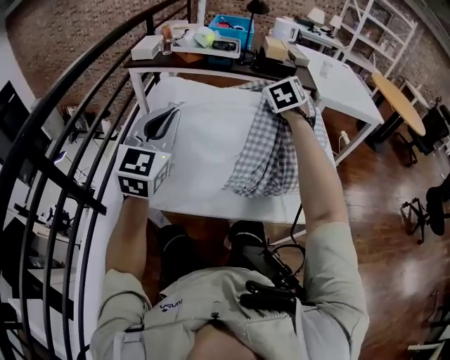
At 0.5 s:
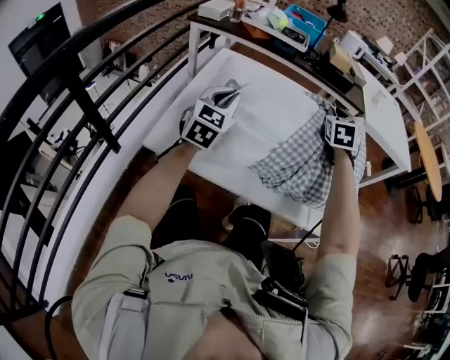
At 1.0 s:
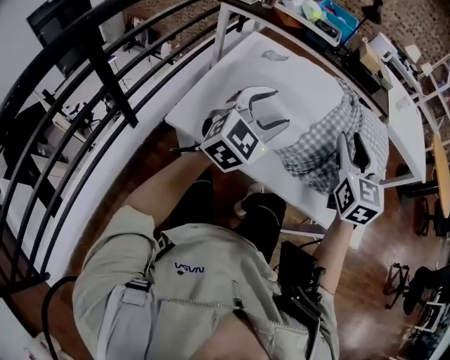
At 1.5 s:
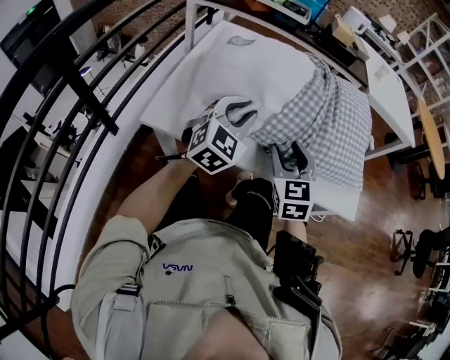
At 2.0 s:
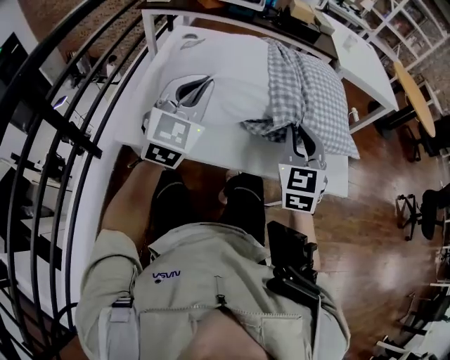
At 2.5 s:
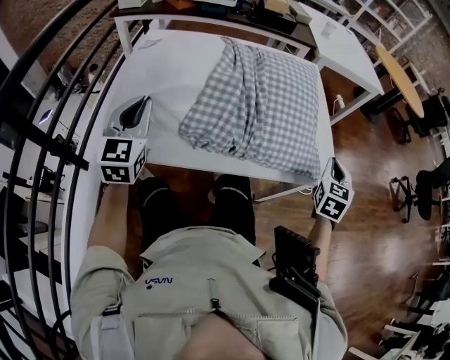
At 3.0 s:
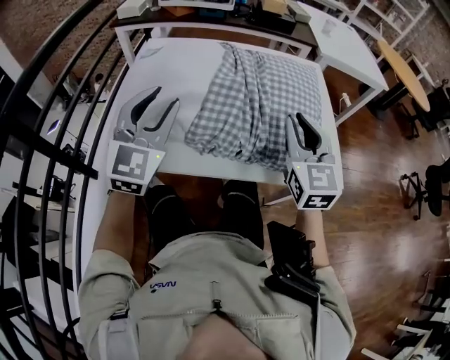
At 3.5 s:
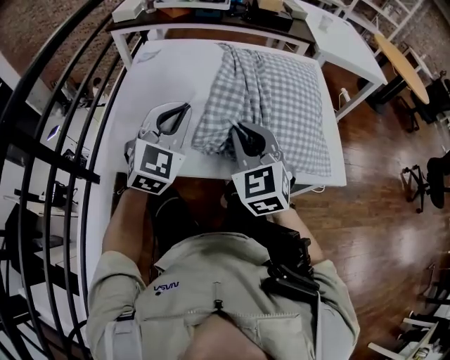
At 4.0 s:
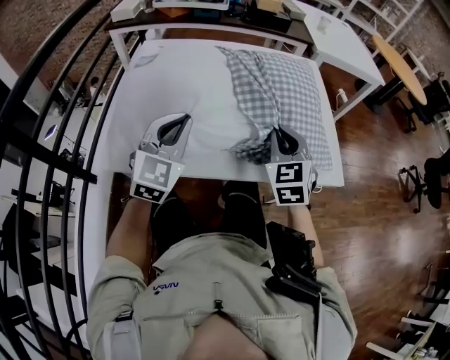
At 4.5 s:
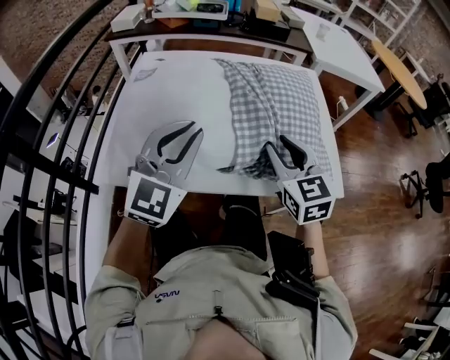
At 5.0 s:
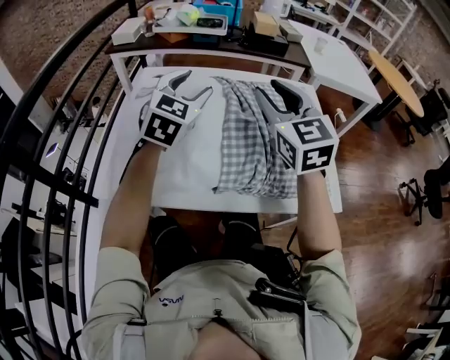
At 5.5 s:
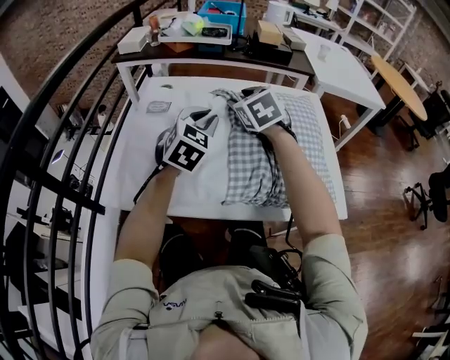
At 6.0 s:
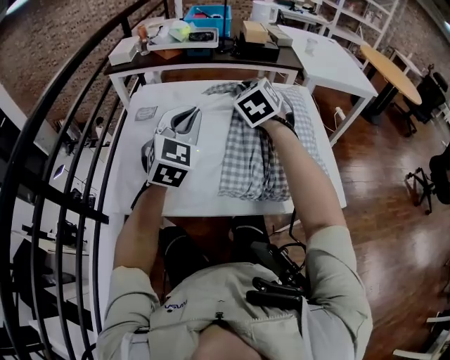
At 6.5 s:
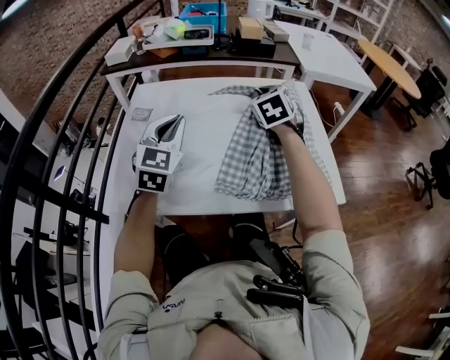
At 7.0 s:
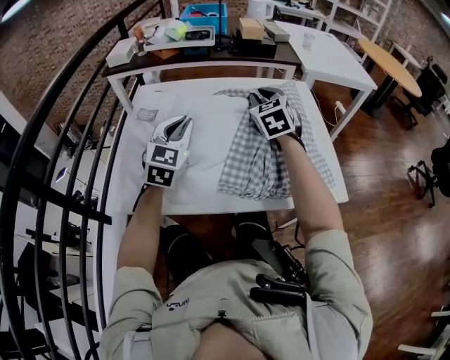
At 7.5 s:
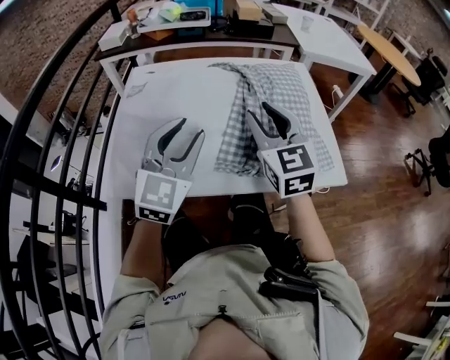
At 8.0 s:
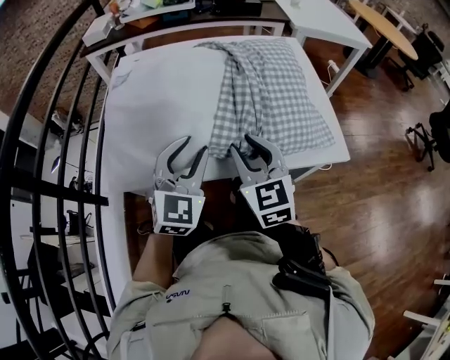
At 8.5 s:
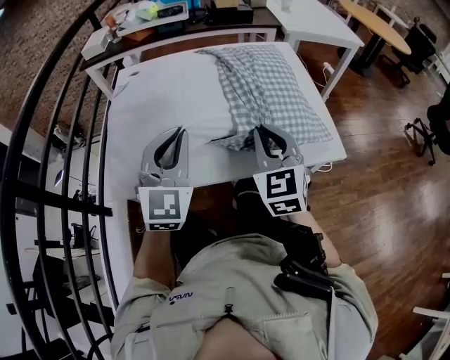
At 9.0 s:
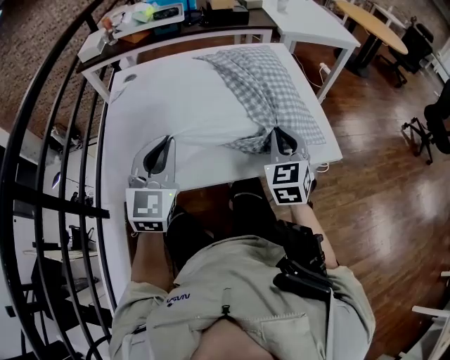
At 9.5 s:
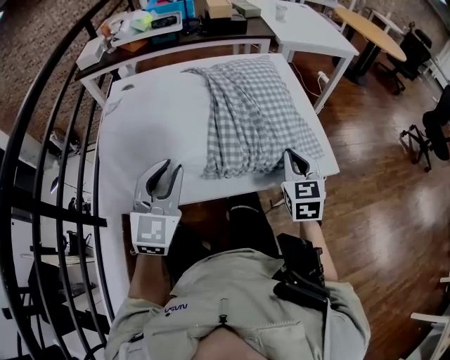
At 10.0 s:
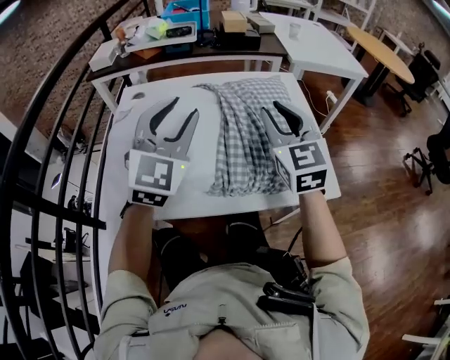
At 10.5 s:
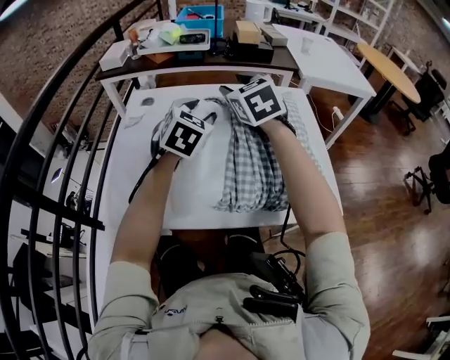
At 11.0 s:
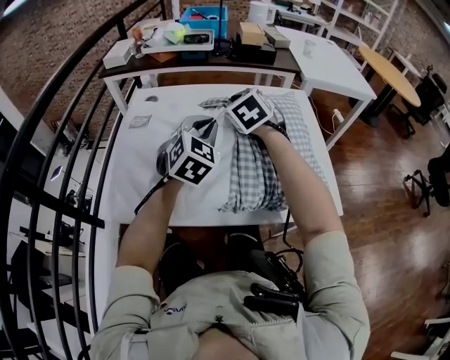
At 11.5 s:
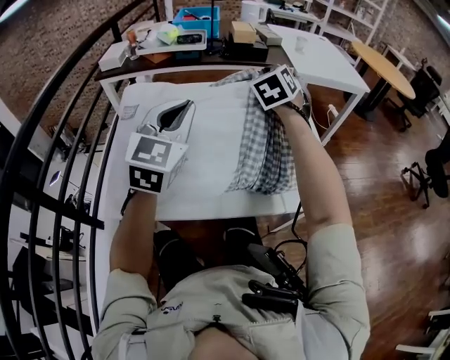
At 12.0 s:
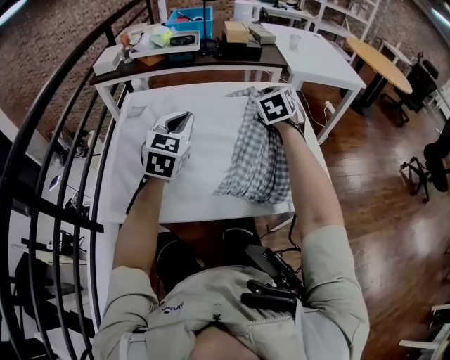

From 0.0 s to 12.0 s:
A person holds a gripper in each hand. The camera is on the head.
From 0.0 s to 2.0 s: The right gripper travels backward by some 25 cm, swivels approximately 20 degrees, and opens and closes again; the left gripper travels downward and to the right by roughly 10 cm, and opens and closes again.
From 2.0 s to 4.0 s: The left gripper shifts about 5 cm downward, reaches some 5 cm to the left, then returns, and opens, then closes again. Meanwhile the right gripper swings left and right, roughly 35 cm each way, with 2 reversals.
From 4.0 s to 6.0 s: The right gripper shifts approximately 25 cm forward, upward and to the left, and opens, then closes once more. Meanwhile the left gripper travels forward and upward by some 10 cm, and opens, then closes again.
From 6.0 s to 8.0 s: The left gripper shifts some 15 cm backward and downward, and opens its fingers; the right gripper moves backward and downward, some 25 cm, rotates about 30 degrees, and opens its fingers.
From 8.0 s to 10.0 s: The left gripper swings up and down, about 15 cm each way, with 2 reversals, and closes and opens again, while the right gripper travels upward, forward and to the right by some 20 cm, and closes, then reopens.
From 10.0 s to 12.0 s: The left gripper swings forward and backward, about 10 cm each way, with 2 reversals, and closes; the right gripper goes roughly 15 cm forward, swivels approximately 30 degrees, and closes.

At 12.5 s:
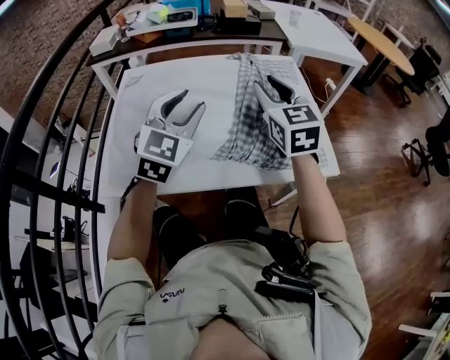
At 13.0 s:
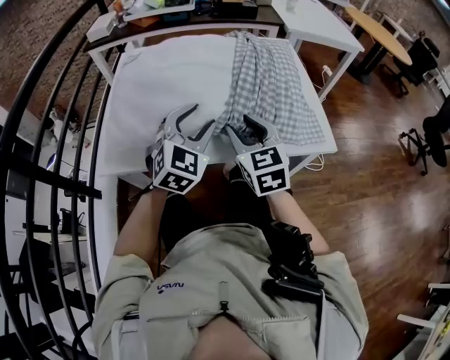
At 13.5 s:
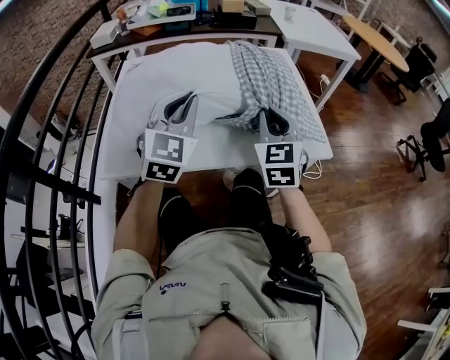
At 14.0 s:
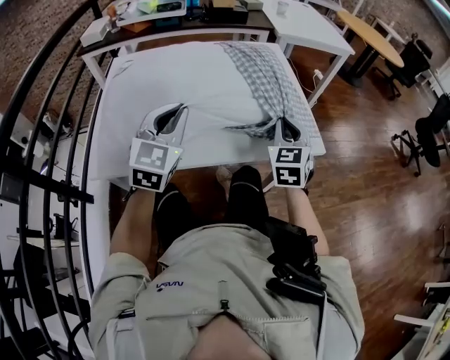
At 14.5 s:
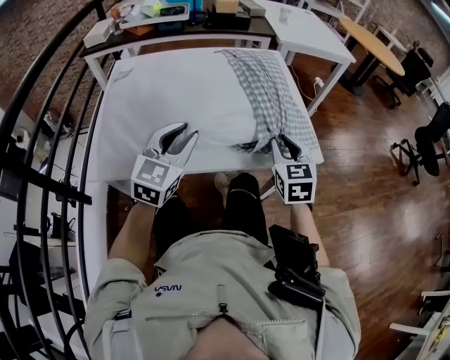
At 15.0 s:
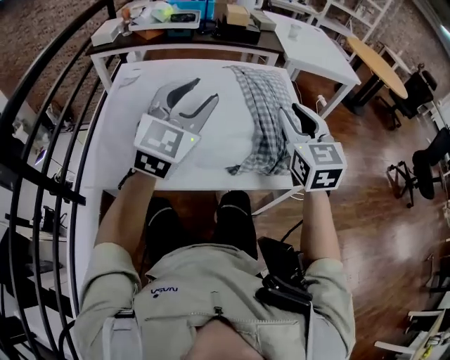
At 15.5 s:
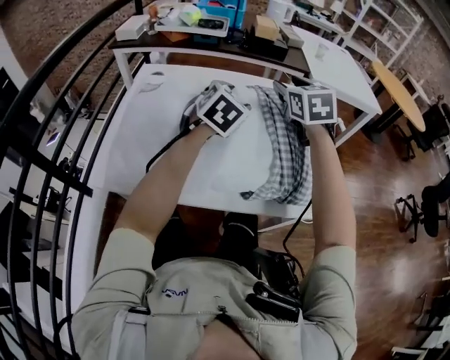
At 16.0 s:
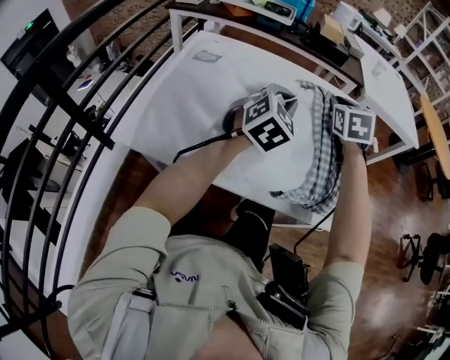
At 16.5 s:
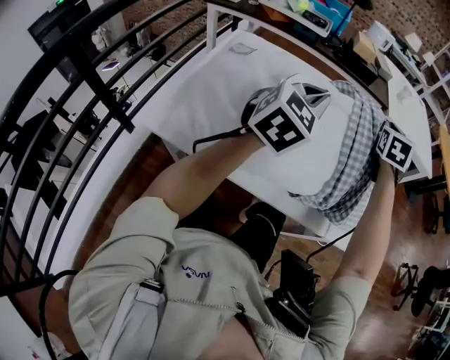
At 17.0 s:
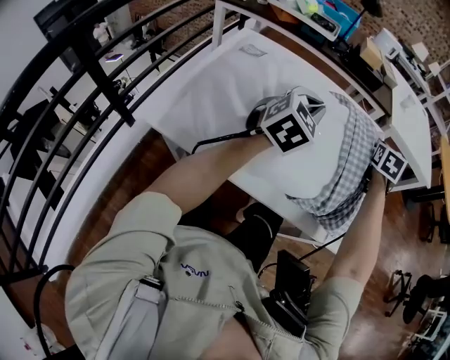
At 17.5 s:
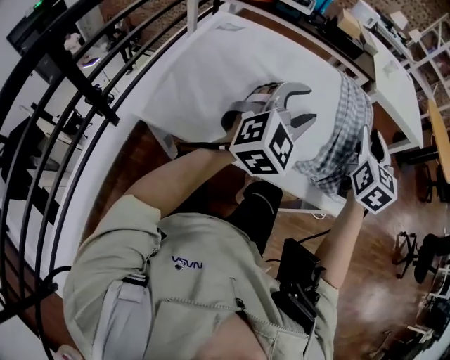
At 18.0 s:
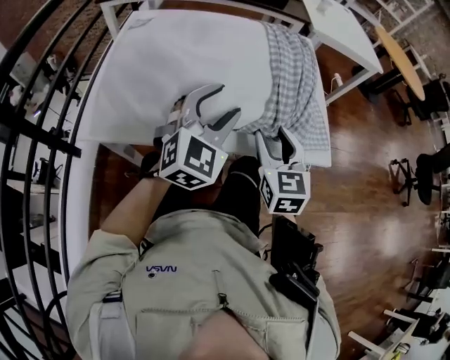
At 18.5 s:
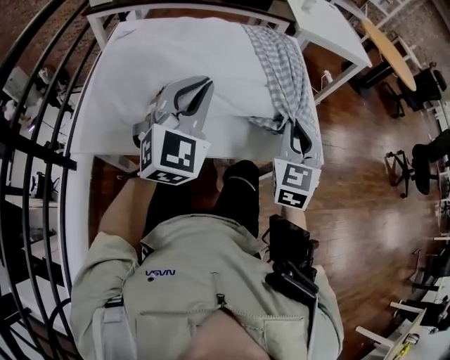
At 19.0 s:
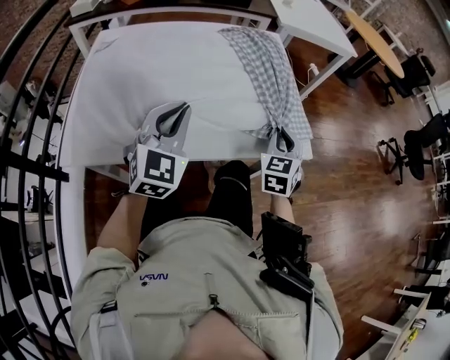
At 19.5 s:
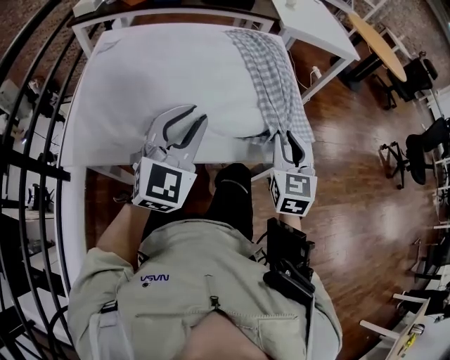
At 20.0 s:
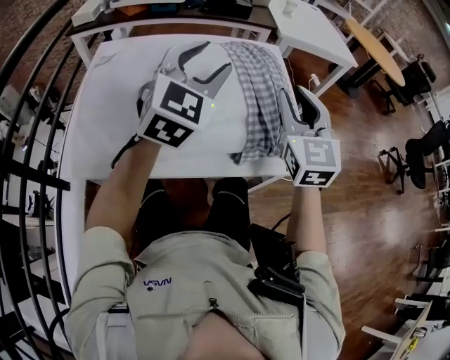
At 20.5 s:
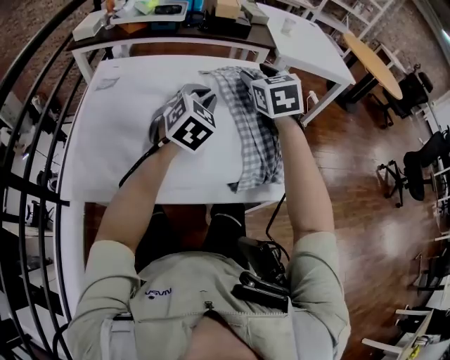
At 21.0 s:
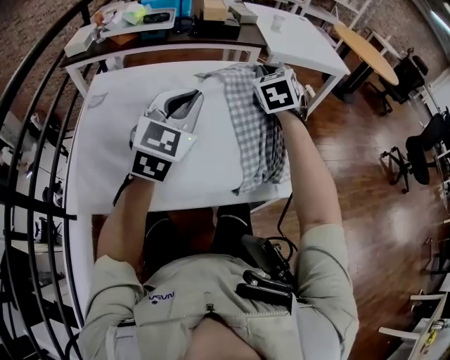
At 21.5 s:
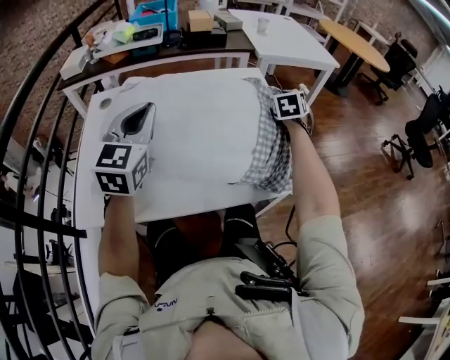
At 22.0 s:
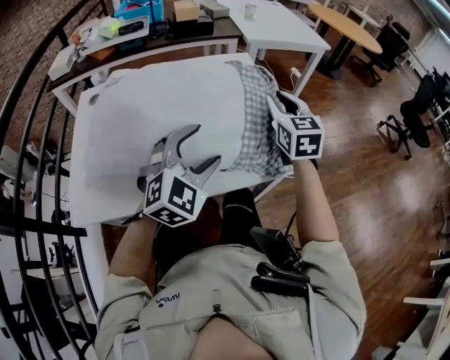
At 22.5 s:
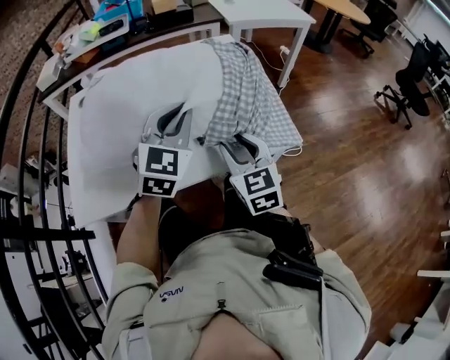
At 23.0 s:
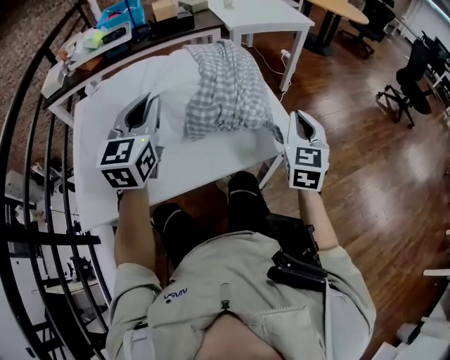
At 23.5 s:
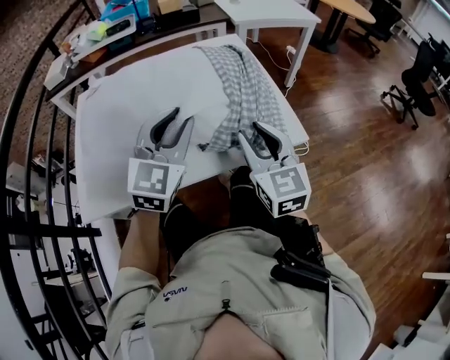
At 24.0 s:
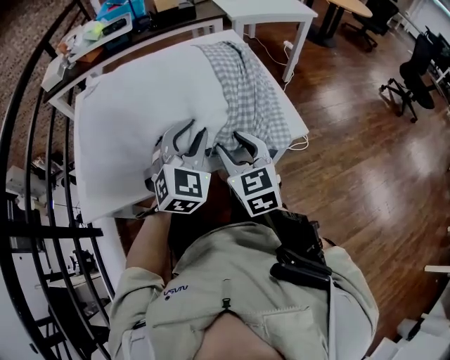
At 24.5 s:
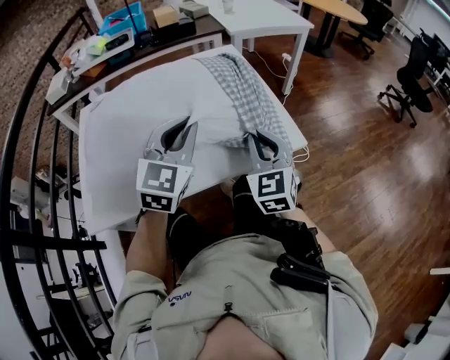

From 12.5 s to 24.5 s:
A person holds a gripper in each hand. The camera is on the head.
From 12.5 s to 14.5 s: The right gripper heads downward, to the right and backward, covering approximately 20 cm. Meanwhile the left gripper moves up and down over roughly 10 cm, changing direction 2 times.
From 14.5 s to 16.5 s: The right gripper travels forward and upward by approximately 30 cm, and opens, then closes once more; the left gripper goes approximately 20 cm forward and upward, and opens, then closes again.
From 16.5 s to 18.5 s: The left gripper moves backward and downward, some 10 cm, and opens and closes again. Meanwhile the right gripper is displaced backward by about 30 cm, and opens, then closes once more.
From 18.5 s to 20.5 s: The left gripper travels forward by some 15 cm, swivels roughly 20 degrees, and opens and closes again. The right gripper goes some 25 cm forward and to the left, rotates about 20 degrees, and opens up.
From 20.5 s to 22.5 s: The left gripper shifts some 10 cm backward, goes to the left and returns, approximately 10 cm each way, and opens, then closes again. Meanwhile the right gripper shifts some 25 cm backward and downward, and closes, then reopens.
From 22.5 s to 24.5 s: The right gripper moves left and right over about 20 cm, changing direction 2 times, and closes, while the left gripper goes up and down, approximately 10 cm each way, reversing 2 times.

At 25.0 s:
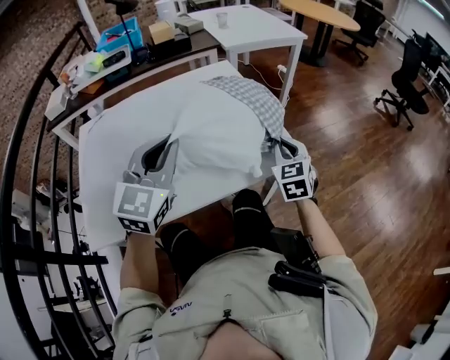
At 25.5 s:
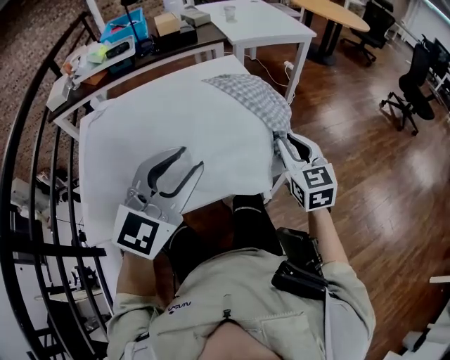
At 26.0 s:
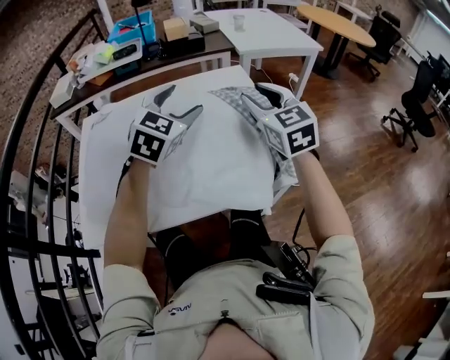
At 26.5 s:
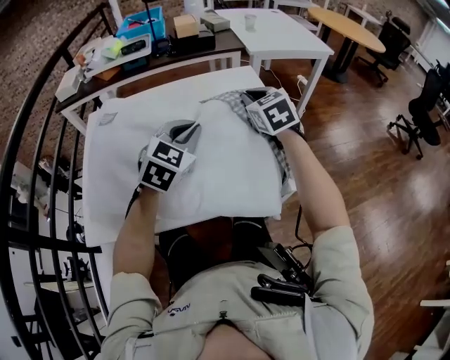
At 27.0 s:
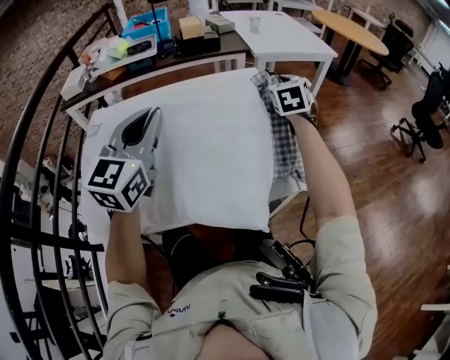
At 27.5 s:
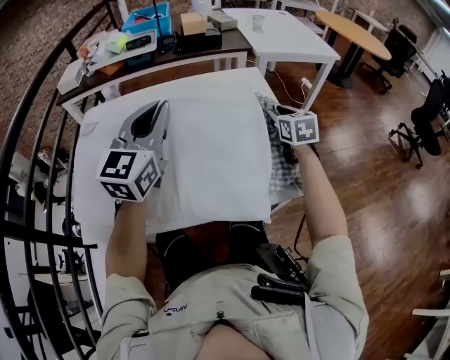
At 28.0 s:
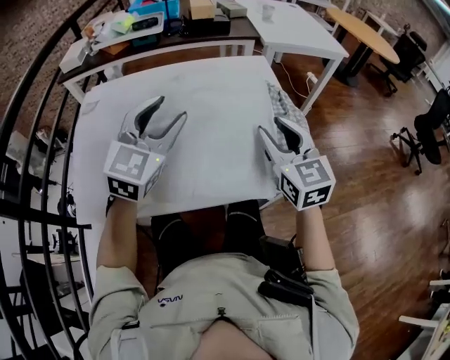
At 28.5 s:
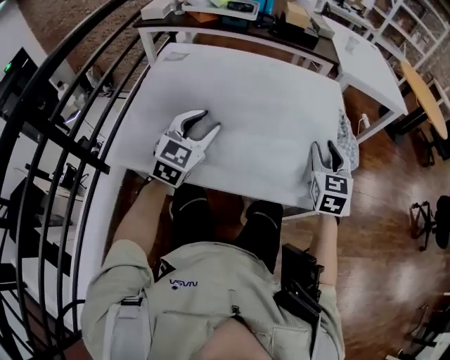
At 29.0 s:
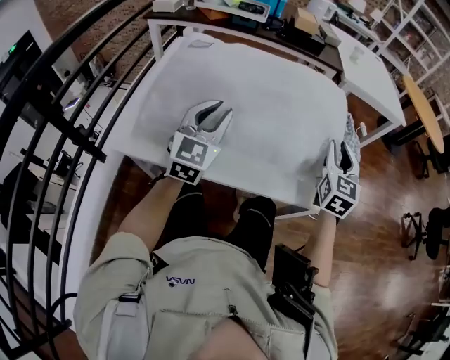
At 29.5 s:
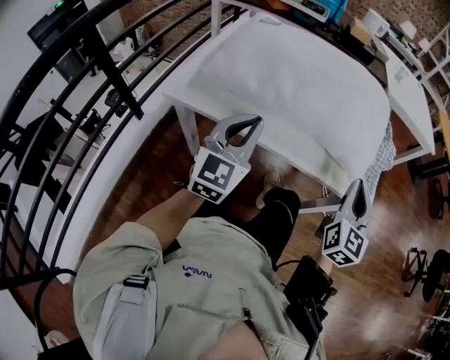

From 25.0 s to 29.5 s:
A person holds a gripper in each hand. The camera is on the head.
From 25.0 s to 27.0 s: The right gripper goes roughly 25 cm forward and upward, and opens and closes again. The left gripper swings forward and backward, approximately 20 cm each way, with 2 reversals, and opens, then closes again.
From 27.0 s to 29.5 s: The right gripper moves forward and backward over roughly 30 cm, changing direction 2 times, swivels roughly 30 degrees, and opens, then closes again; the left gripper travels backward and downward by approximately 25 cm, turns by roughly 20 degrees, and opens and closes again.
